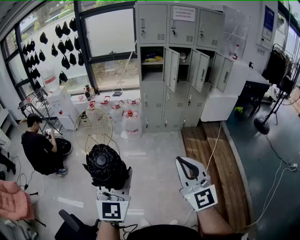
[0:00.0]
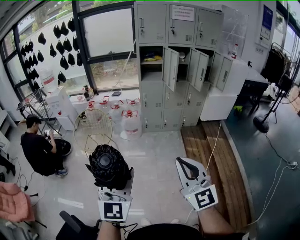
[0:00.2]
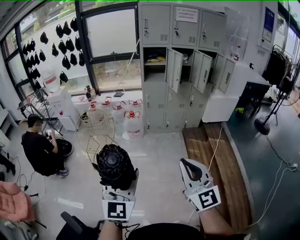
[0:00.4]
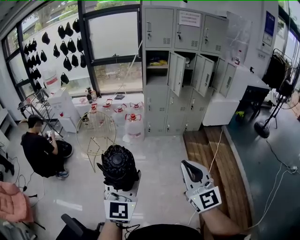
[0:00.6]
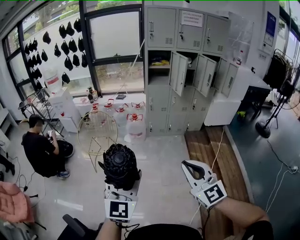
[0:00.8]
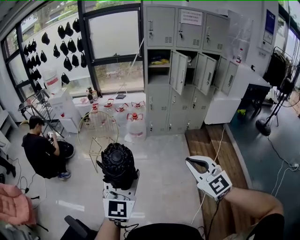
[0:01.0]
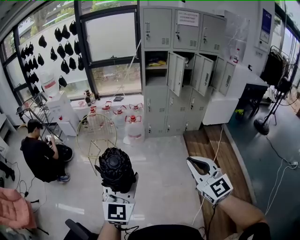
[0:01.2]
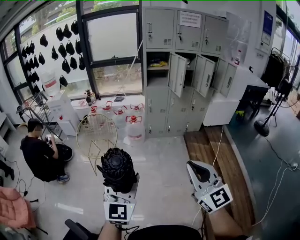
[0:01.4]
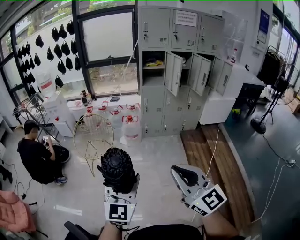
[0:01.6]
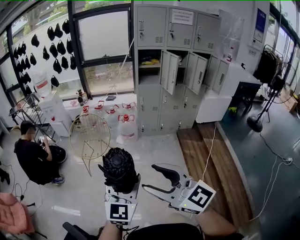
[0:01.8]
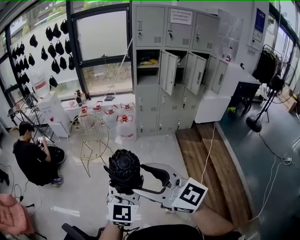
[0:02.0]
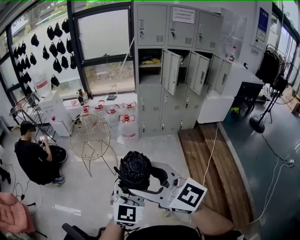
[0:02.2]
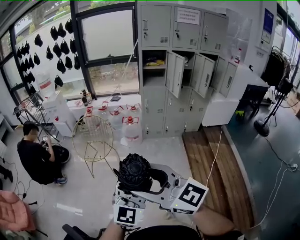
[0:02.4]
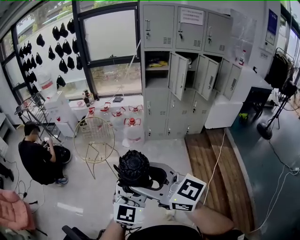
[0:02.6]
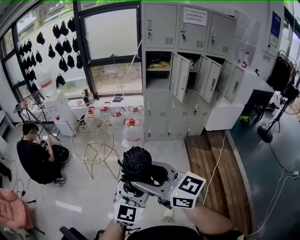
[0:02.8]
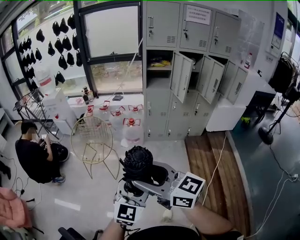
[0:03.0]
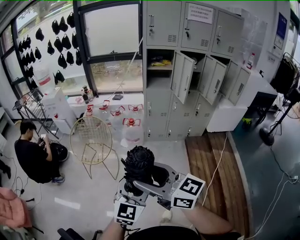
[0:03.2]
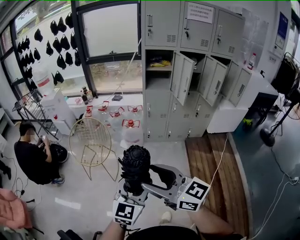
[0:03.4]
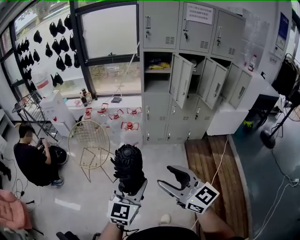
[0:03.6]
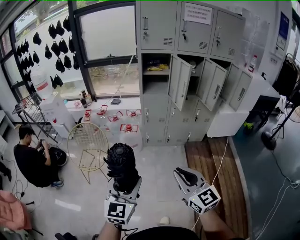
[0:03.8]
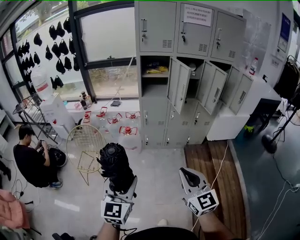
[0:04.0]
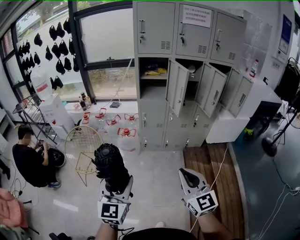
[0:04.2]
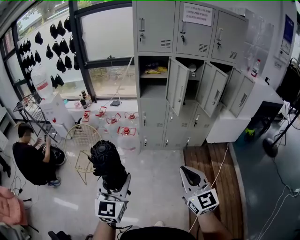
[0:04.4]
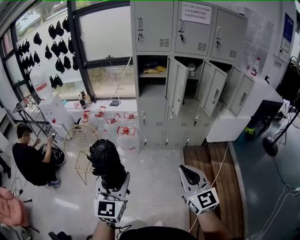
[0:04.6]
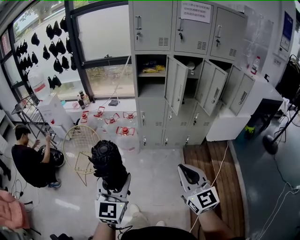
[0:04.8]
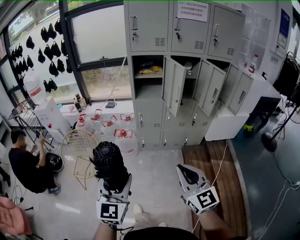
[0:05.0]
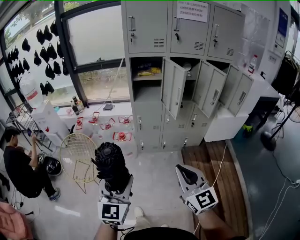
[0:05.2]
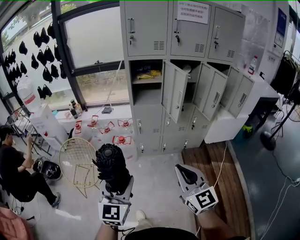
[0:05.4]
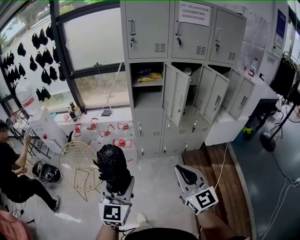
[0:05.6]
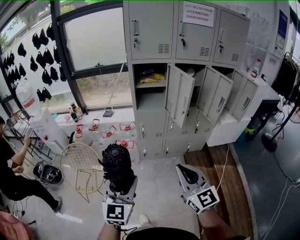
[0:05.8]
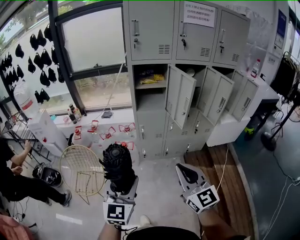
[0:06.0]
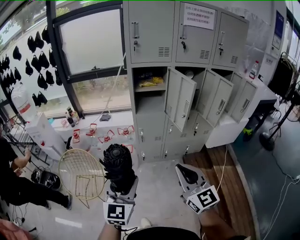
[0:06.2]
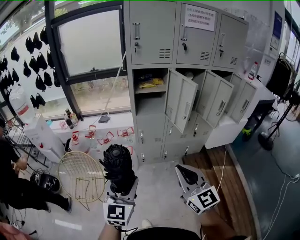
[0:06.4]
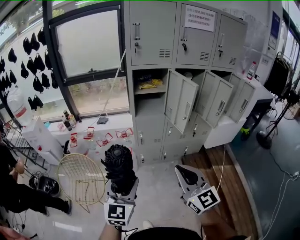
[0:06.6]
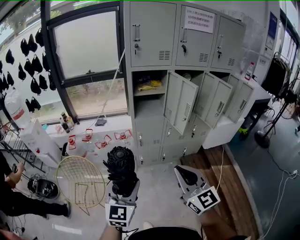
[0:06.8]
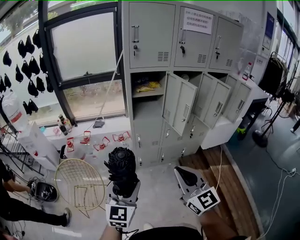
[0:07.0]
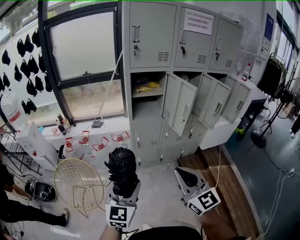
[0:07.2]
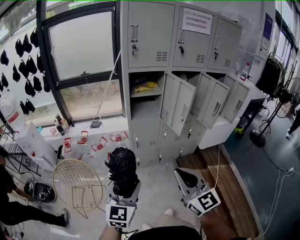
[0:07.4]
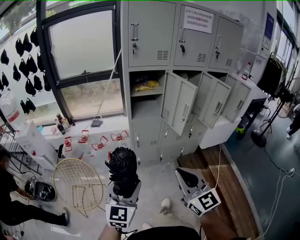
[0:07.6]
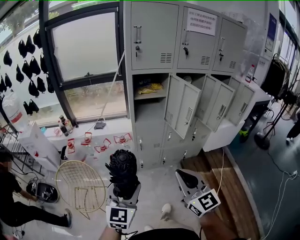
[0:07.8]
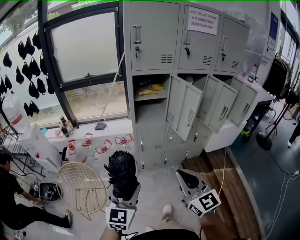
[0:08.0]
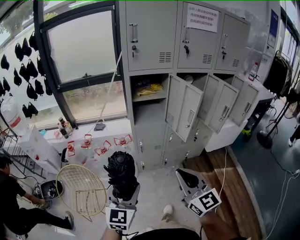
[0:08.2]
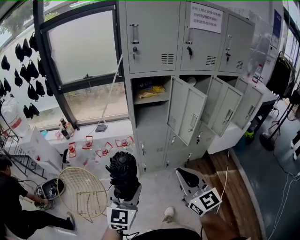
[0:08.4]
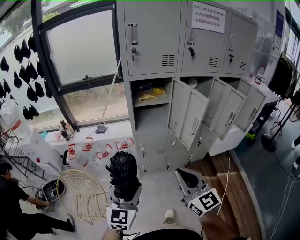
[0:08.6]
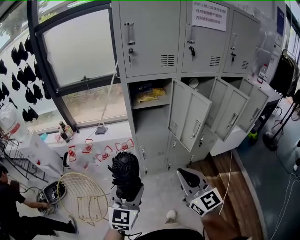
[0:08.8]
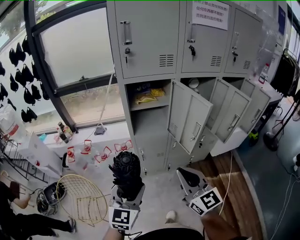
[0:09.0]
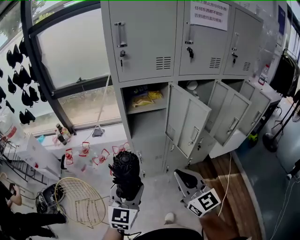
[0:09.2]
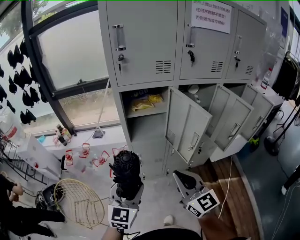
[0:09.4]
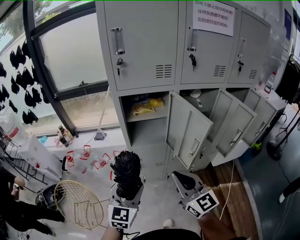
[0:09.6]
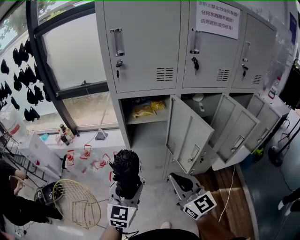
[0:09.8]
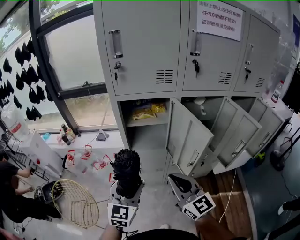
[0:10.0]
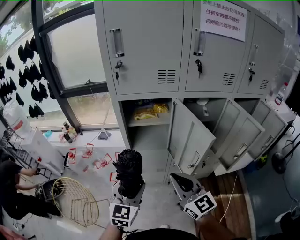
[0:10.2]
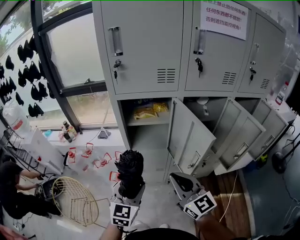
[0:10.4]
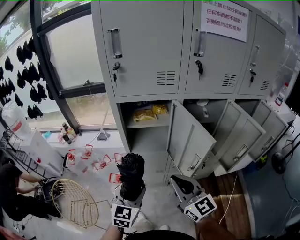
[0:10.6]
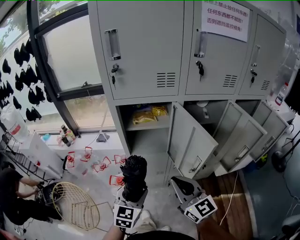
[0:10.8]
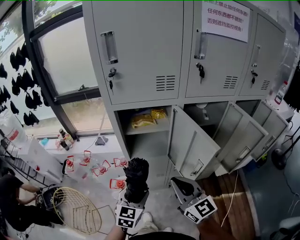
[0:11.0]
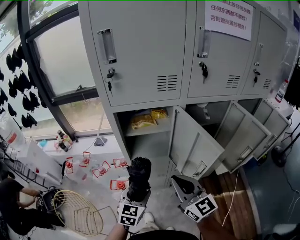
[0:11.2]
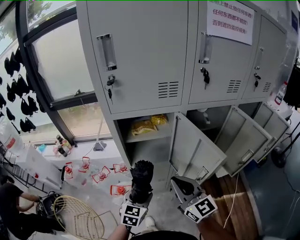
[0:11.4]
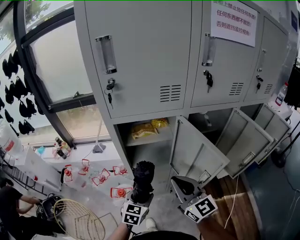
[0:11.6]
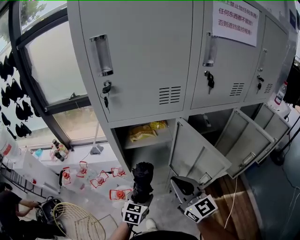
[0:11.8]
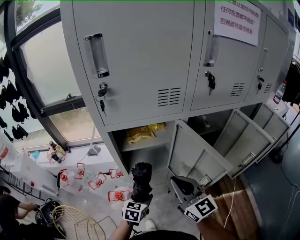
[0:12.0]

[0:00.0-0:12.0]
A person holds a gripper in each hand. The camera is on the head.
0:00.0 to 0:01.6: The left gripper goes roughly 5 cm to the left; the right gripper goes roughly 10 cm to the left.
0:01.6 to 0:03.0: The left gripper heads to the right and forward, covering roughly 15 cm, while the right gripper moves forward, some 15 cm, rotates about 40 degrees, and opens up.
0:03.0 to 0:04.4: The right gripper travels to the right and forward by roughly 30 cm, rotates about 40 degrees, and closes up; the left gripper heads forward, covering about 15 cm.
0:04.4 to 0:06.0: The left gripper moves forward, approximately 20 cm. Meanwhile the right gripper moves forward and to the left, approximately 20 cm.
0:06.0 to 0:07.6: The left gripper shifts some 5 cm forward. The right gripper travels to the left by approximately 5 cm.
0:07.6 to 0:09.0: Both grippers move forward, roughly 20 cm.
0:09.0 to 0:10.4: Both grippers move forward and to the right, about 15 cm.
0:10.4 to 0:12.0: The right gripper travels forward by some 15 cm. The left gripper travels downward and forward by roughly 20 cm, and changes its angle by approximately 30 degrees.

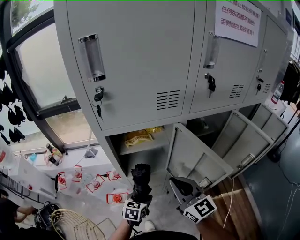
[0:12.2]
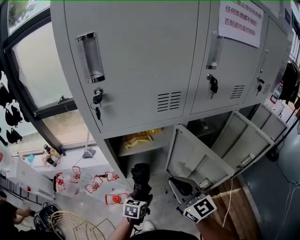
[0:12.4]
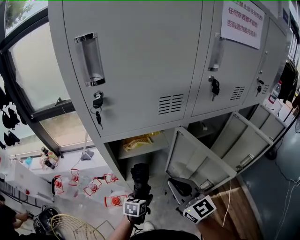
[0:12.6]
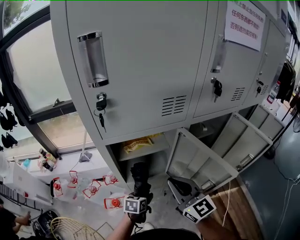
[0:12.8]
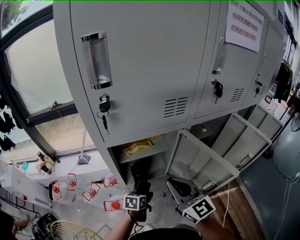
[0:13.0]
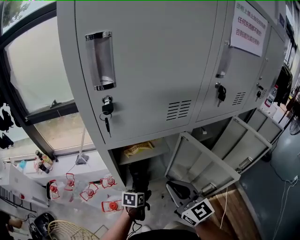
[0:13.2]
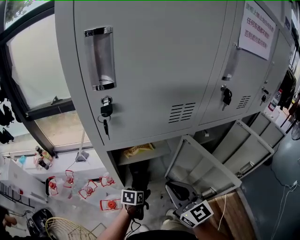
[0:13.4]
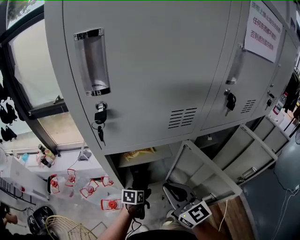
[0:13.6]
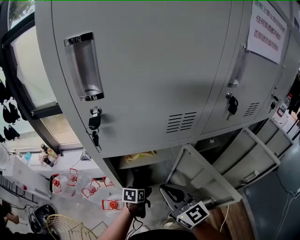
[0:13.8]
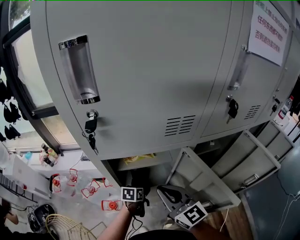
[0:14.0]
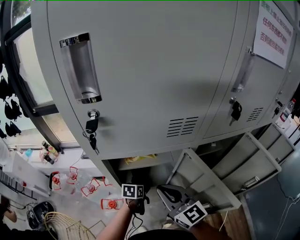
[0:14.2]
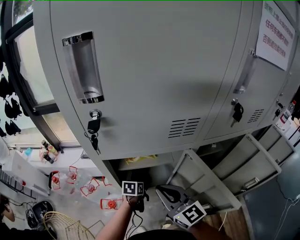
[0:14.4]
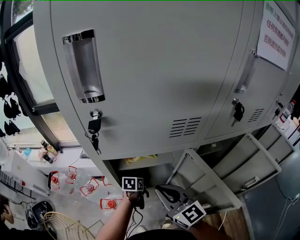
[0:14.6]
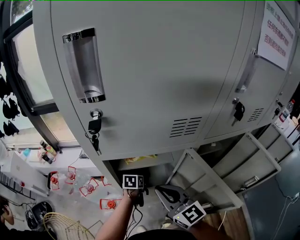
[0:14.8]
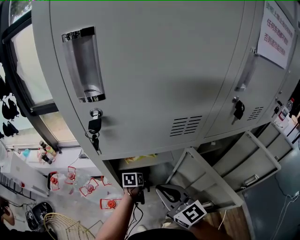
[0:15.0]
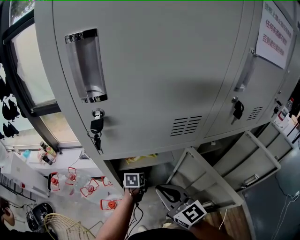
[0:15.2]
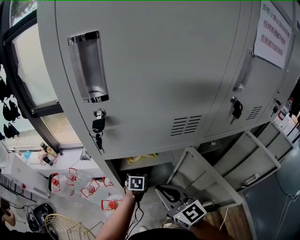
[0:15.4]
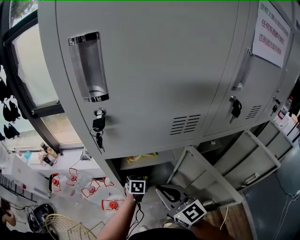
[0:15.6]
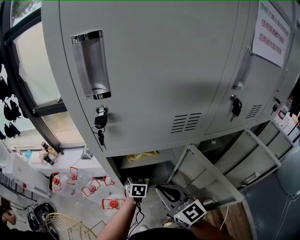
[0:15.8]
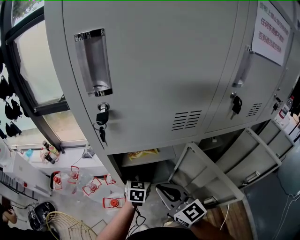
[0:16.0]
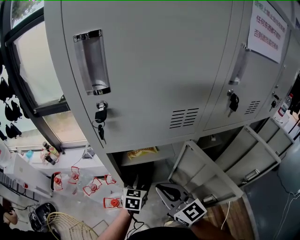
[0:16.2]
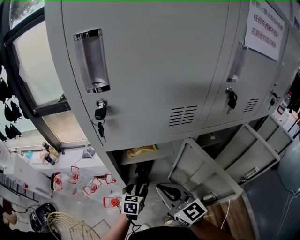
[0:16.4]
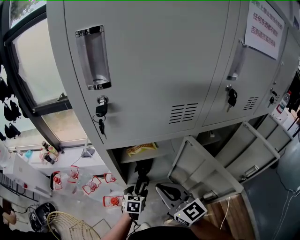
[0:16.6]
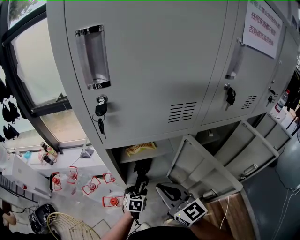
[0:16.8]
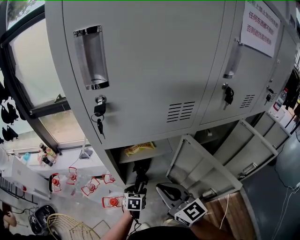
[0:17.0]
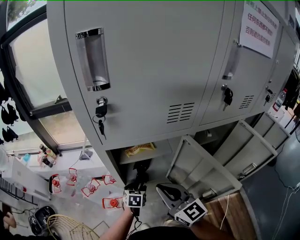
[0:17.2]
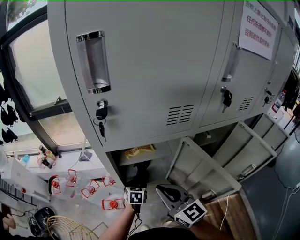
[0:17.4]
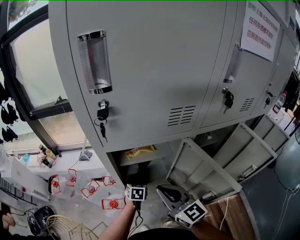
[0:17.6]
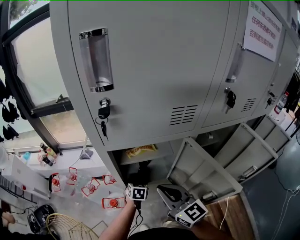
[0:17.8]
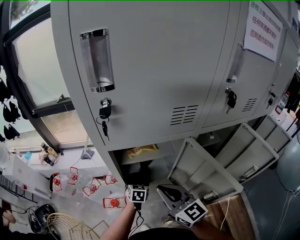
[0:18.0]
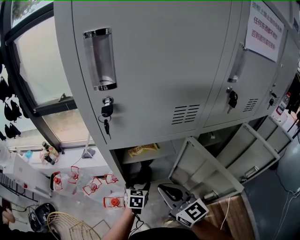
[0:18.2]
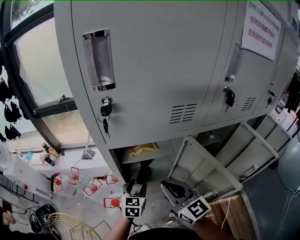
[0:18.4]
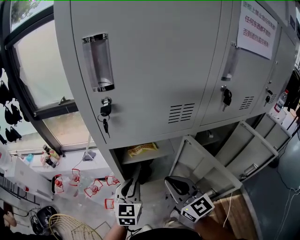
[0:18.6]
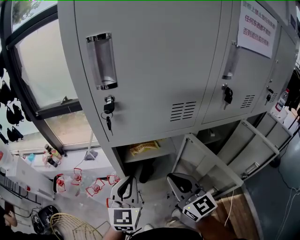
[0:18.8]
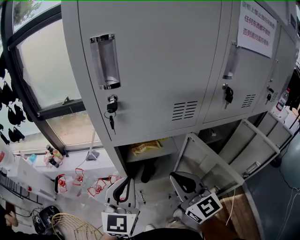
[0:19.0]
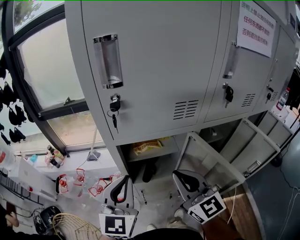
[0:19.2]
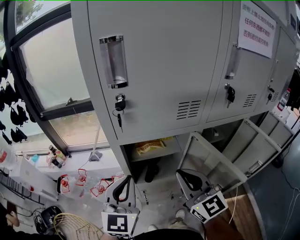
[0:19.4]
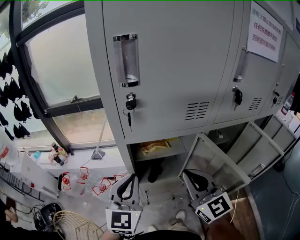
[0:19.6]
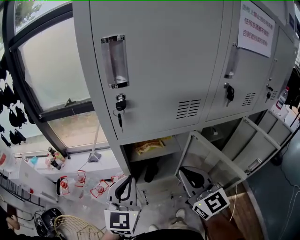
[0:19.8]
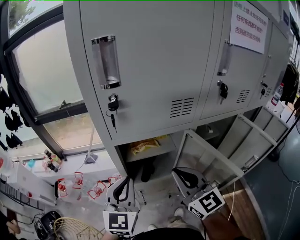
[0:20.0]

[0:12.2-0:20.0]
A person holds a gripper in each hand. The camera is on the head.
0:12.2 to 0:13.8: The right gripper heads forward, covering some 5 cm. The left gripper goes roughly 15 cm forward, and turns by about 20 degrees.
0:13.8 to 0:15.4: The left gripper is displaced forward by approximately 10 cm, and turns by roughly 20 degrees.
0:15.4 to 0:16.8: The left gripper travels backward by approximately 15 cm.
0:16.8 to 0:18.4: The left gripper shifts roughly 10 cm upward.
0:18.4 to 0:20.0: The left gripper moves upward, about 20 cm, changes its angle by approximately 30 degrees, and closes its fingers; the right gripper goes some 5 cm upward.

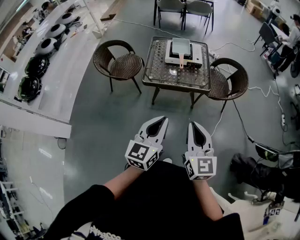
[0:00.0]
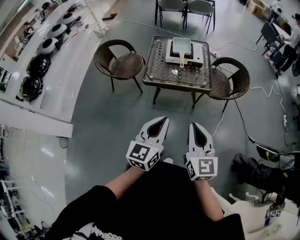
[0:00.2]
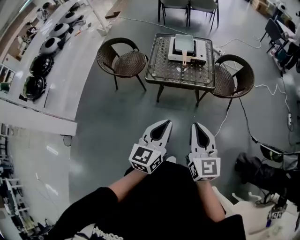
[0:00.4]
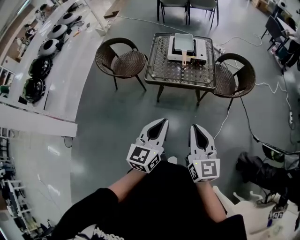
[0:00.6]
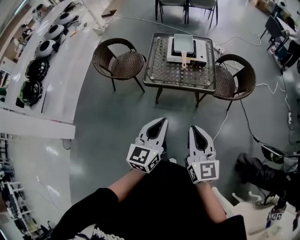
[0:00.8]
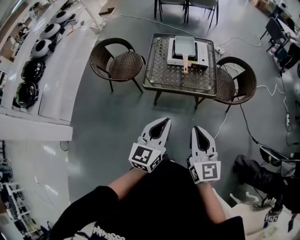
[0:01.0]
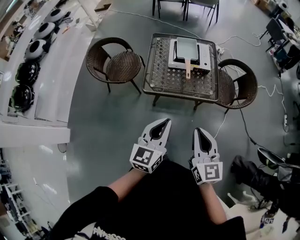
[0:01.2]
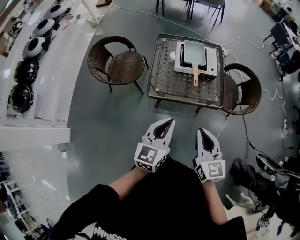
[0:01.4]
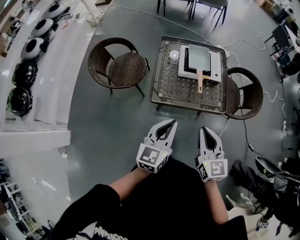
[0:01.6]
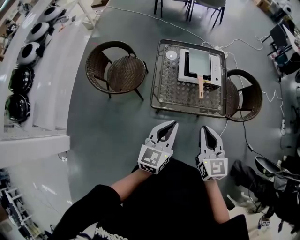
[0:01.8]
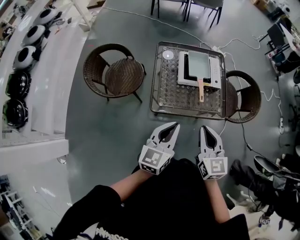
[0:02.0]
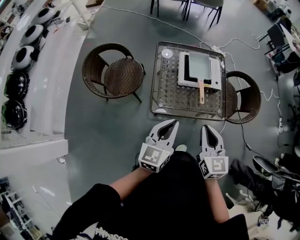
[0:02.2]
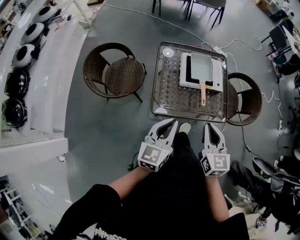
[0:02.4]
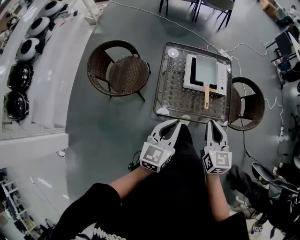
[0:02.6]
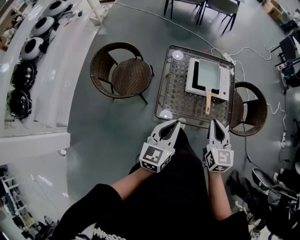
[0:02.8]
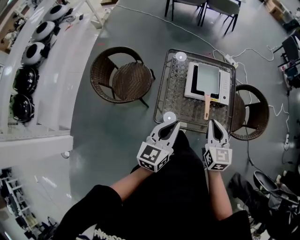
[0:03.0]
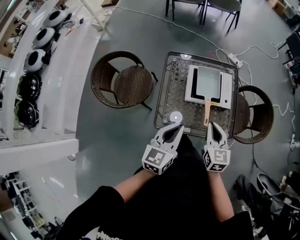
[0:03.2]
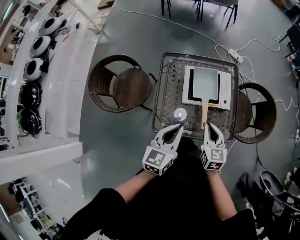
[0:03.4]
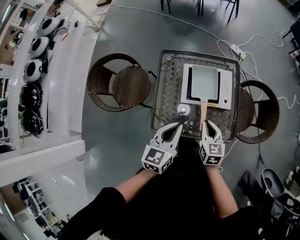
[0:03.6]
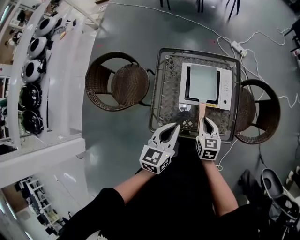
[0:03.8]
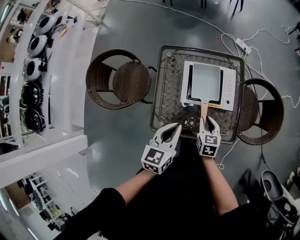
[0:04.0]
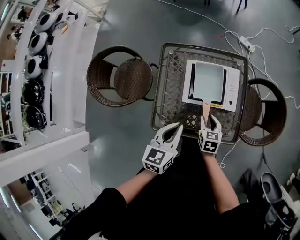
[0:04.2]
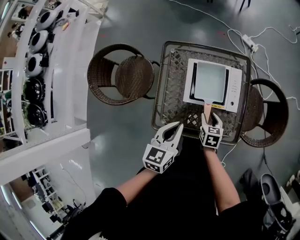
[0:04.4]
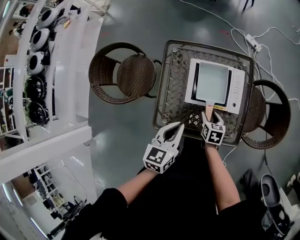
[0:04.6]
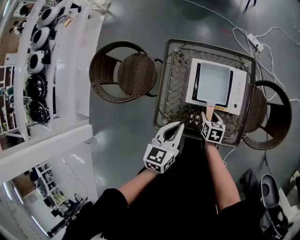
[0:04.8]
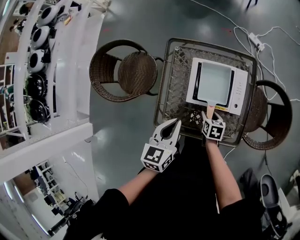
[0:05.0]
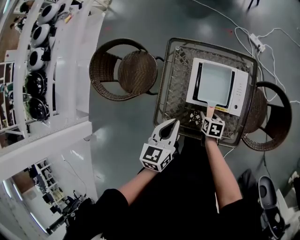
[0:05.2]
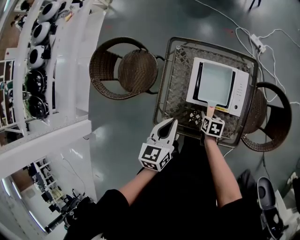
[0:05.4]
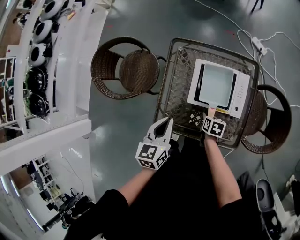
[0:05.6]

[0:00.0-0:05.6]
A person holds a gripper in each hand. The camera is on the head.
0:00.0 to 0:01.4: Both grippers travel together forward, roughly 25 cm.
0:01.4 to 0:02.8: The right gripper goes some 20 cm forward; the left gripper goes some 20 cm forward and to the left.
0:02.8 to 0:04.2: The right gripper heads downward and forward, covering some 30 cm, swivels roughly 30 degrees, and opens up. Meanwhile the left gripper goes roughly 25 cm forward, downward and to the right.
0:04.2 to 0:05.6: The left gripper goes roughly 5 cm to the left; the right gripper is displaced downward by some 10 cm, and changes its angle by approximately 30 degrees.
